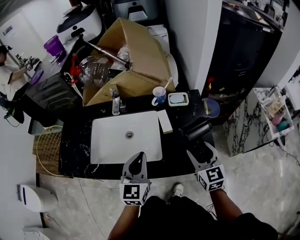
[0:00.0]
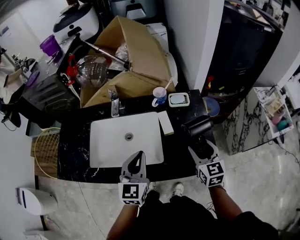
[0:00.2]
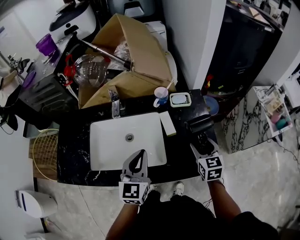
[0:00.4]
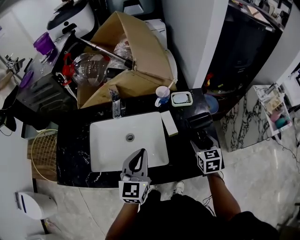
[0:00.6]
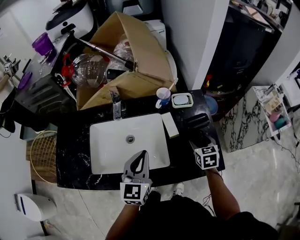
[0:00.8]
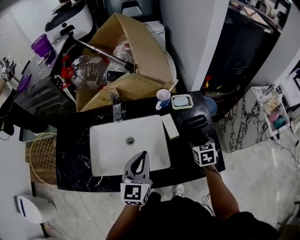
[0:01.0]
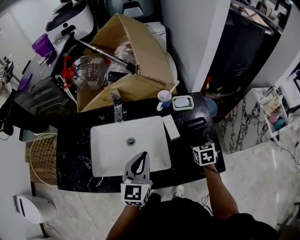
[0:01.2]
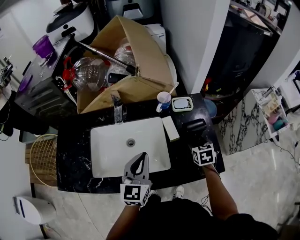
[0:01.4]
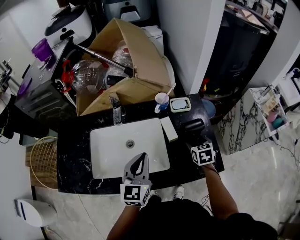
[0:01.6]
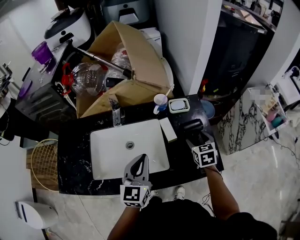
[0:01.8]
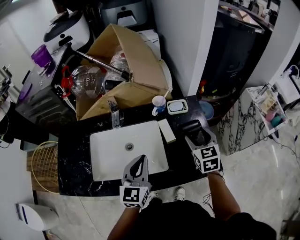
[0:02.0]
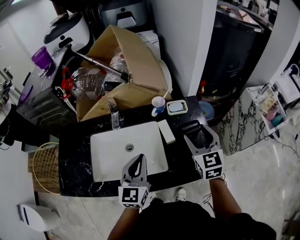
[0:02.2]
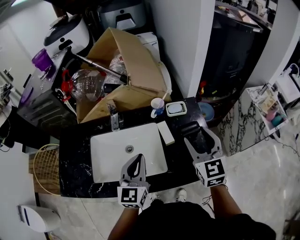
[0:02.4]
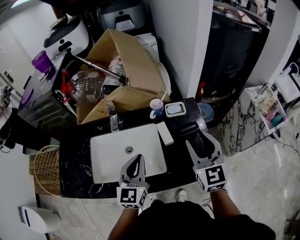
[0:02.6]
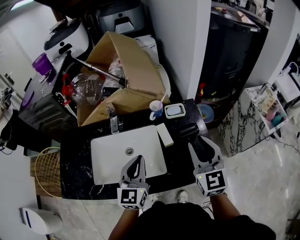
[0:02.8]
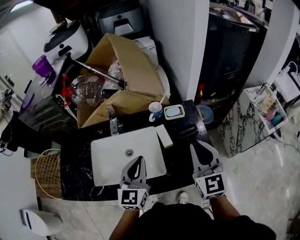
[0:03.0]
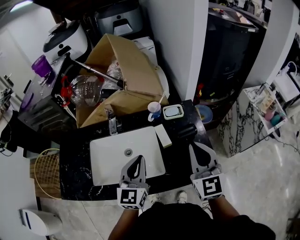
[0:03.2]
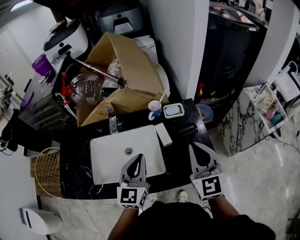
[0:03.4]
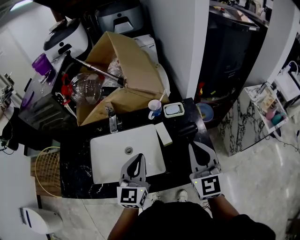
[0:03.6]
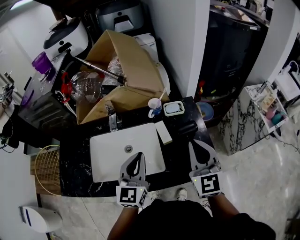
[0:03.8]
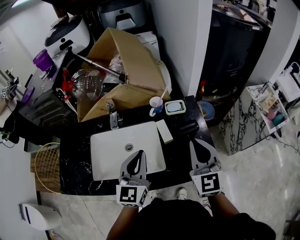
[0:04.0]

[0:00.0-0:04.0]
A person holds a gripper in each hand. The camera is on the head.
0:00.0 to 0:01.4: The left gripper shifts some 5 cm forward; the right gripper moves downward and forward, about 15 cm, and points its fingers some 30 degrees further downward.
0:01.4 to 0:02.6: The right gripper travels upward by approximately 25 cm, and tips its fingers upward by some 40 degrees.
0:02.6 to 0:04.0: The right gripper closes its fingers.

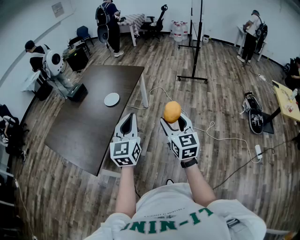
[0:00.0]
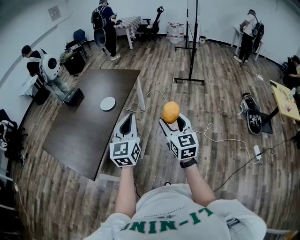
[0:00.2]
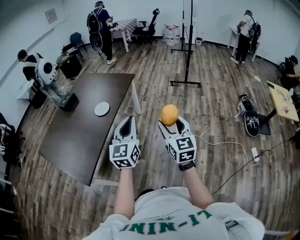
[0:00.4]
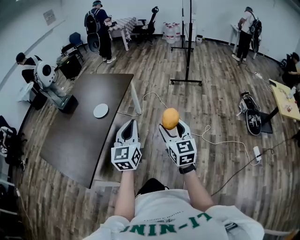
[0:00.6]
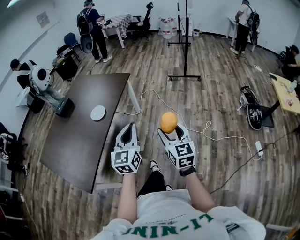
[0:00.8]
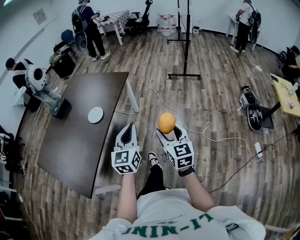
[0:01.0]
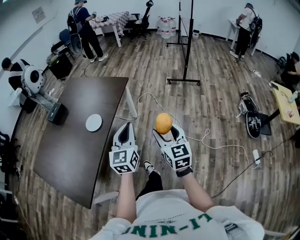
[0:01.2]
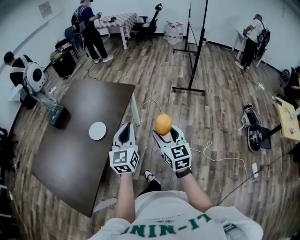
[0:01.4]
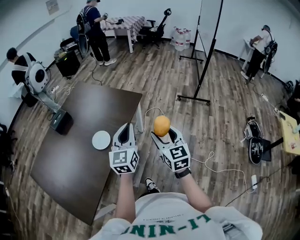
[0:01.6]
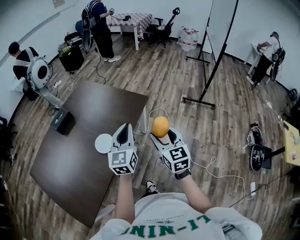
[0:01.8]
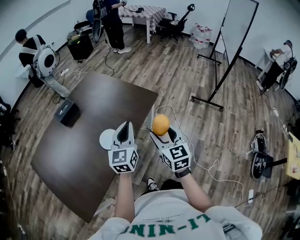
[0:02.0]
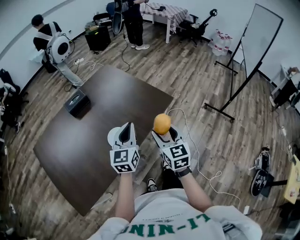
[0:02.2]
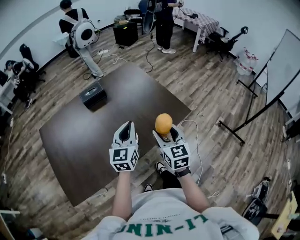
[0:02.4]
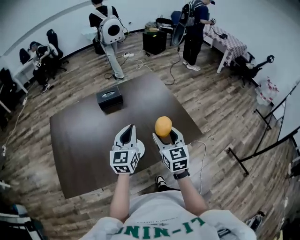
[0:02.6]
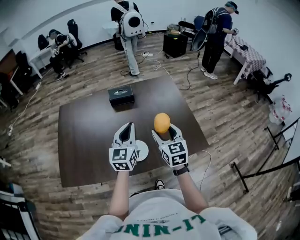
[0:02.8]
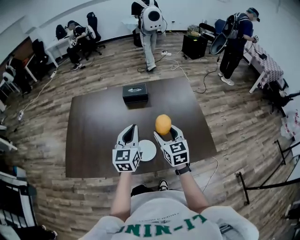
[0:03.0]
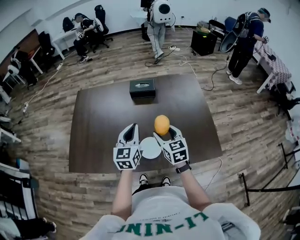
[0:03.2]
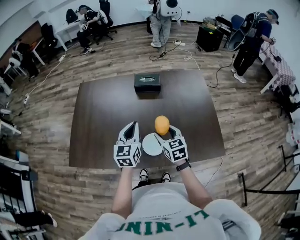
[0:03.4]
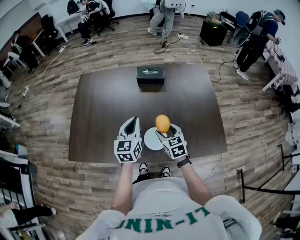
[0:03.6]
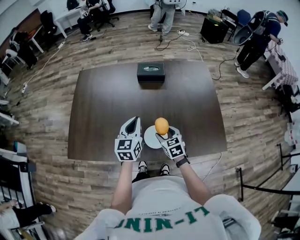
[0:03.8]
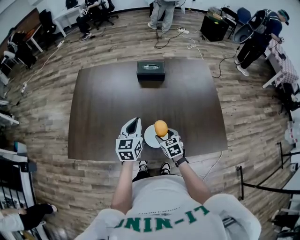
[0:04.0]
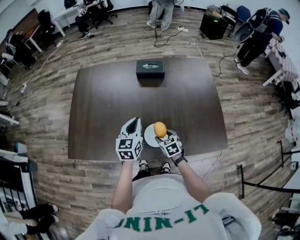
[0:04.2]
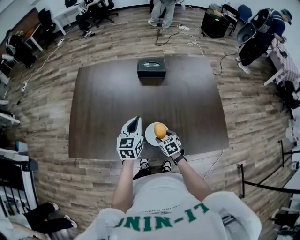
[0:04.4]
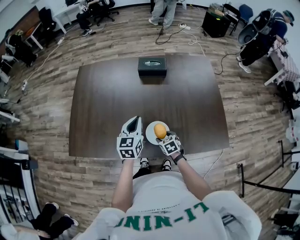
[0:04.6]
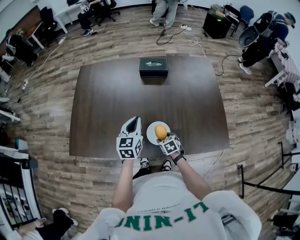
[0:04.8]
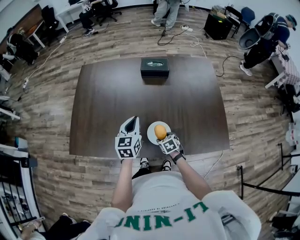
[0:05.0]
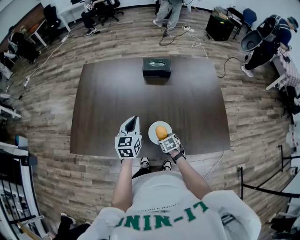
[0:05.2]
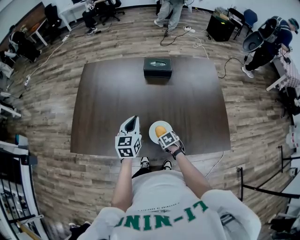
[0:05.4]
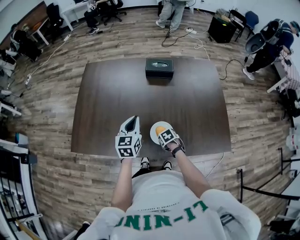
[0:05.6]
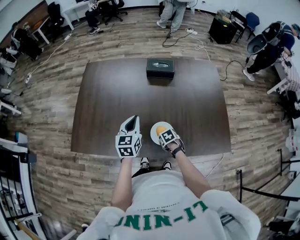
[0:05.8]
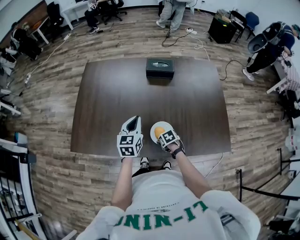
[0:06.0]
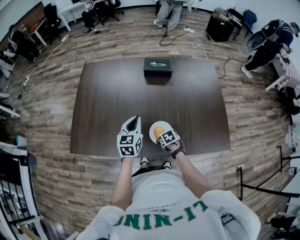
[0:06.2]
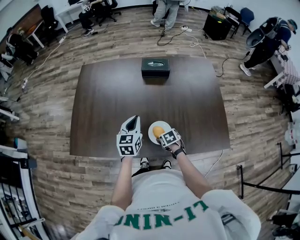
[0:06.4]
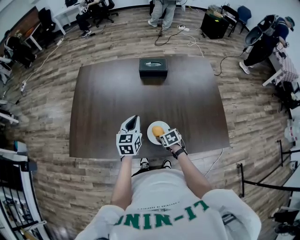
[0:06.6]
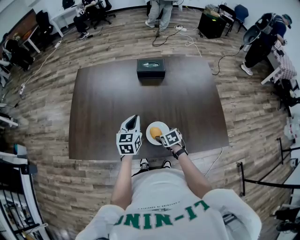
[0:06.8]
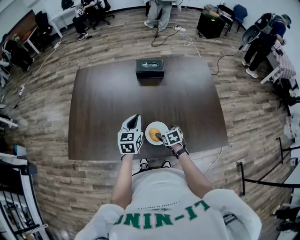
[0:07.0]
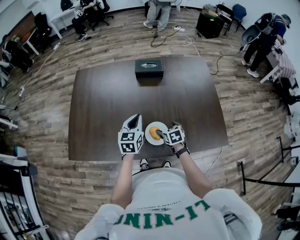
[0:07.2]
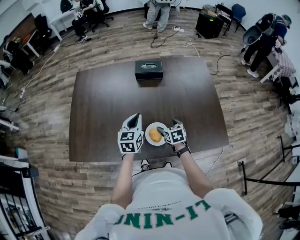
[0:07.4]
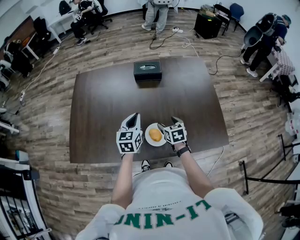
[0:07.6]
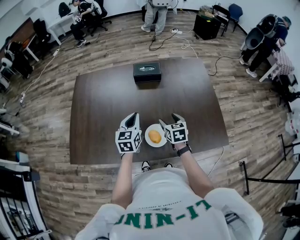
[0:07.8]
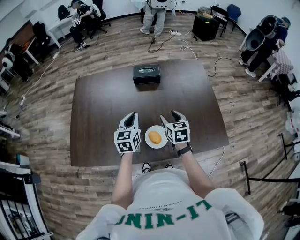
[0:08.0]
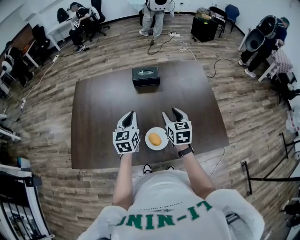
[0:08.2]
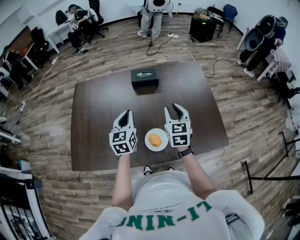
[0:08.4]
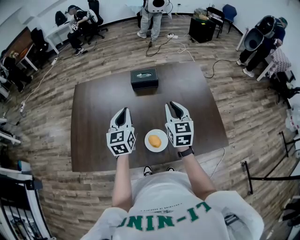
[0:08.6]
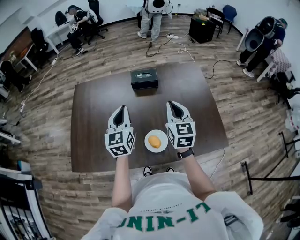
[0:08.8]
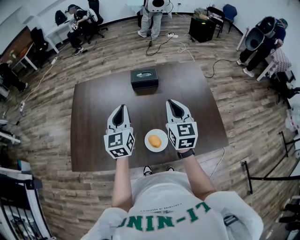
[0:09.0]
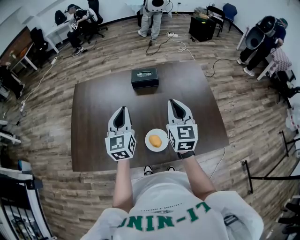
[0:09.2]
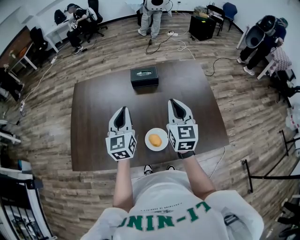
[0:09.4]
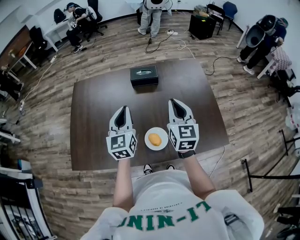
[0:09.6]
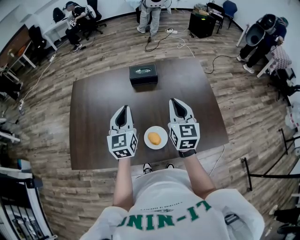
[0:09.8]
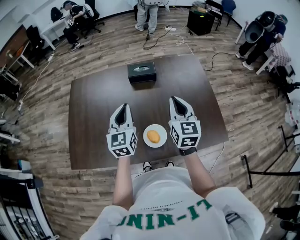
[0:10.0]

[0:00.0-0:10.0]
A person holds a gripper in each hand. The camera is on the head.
0:00.0 to 0:01.4: The two grippers go approximately 35 cm forward.
0:01.4 to 0:02.8: The two grippers travel together, about 50 cm. The left gripper changes its angle by roughly 50 degrees; the right gripper changes its angle by some 60 degrees.
0:02.8 to 0:04.2: The right gripper moves downward, roughly 30 cm, and points its fingers roughly 30 degrees further downward, while the left gripper is displaced downward and to the left by roughly 15 cm.
0:04.2 to 0:05.8: The left gripper moves approximately 5 cm; the right gripper is displaced downward by some 10 cm, and changes its angle by some 30 degrees.
0:05.8 to 0:07.2: The left gripper moves approximately 5 cm, while the right gripper shifts about 10 cm upward, turns by some 30 degrees, and opens its fingers.
0:07.2 to 0:08.6: The left gripper heads upward, covering roughly 10 cm, while the right gripper is displaced upward by some 25 cm, points its fingers approximately 40 degrees further upward, and closes its fingers.
0:08.6 to 0:10.0: The grippers stay close to where they were, moving slightly.

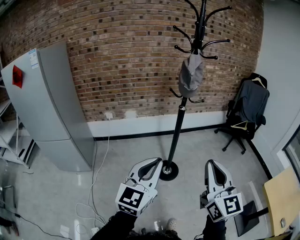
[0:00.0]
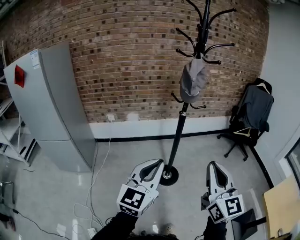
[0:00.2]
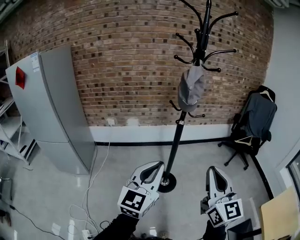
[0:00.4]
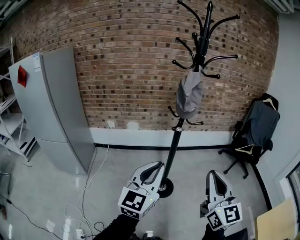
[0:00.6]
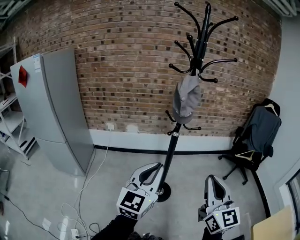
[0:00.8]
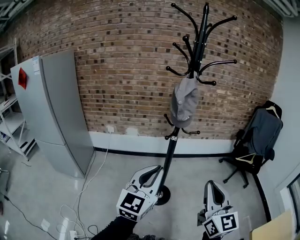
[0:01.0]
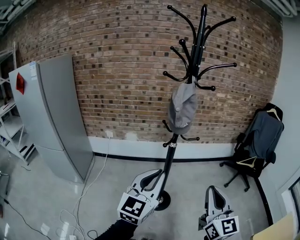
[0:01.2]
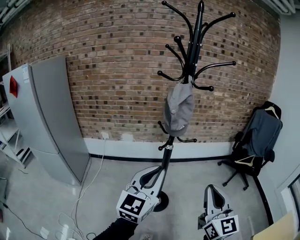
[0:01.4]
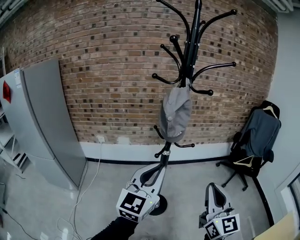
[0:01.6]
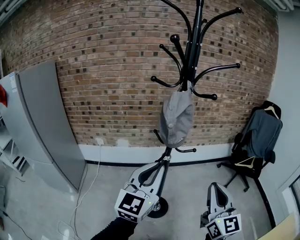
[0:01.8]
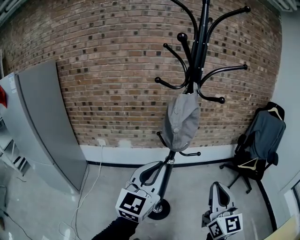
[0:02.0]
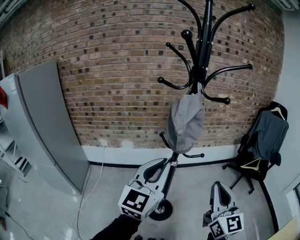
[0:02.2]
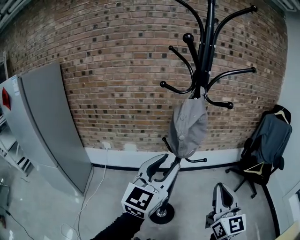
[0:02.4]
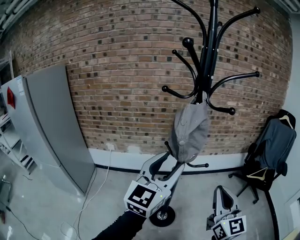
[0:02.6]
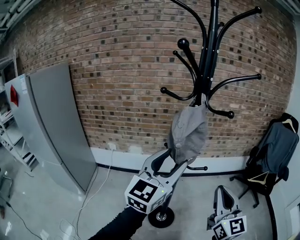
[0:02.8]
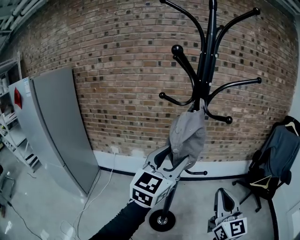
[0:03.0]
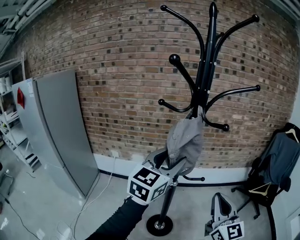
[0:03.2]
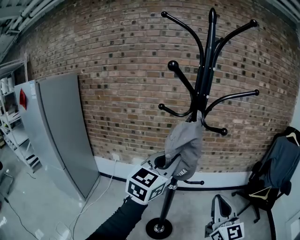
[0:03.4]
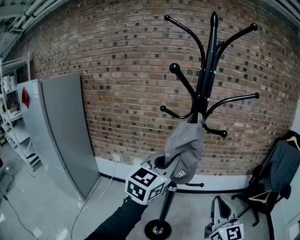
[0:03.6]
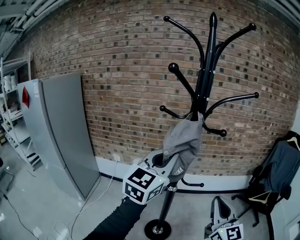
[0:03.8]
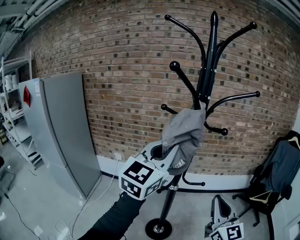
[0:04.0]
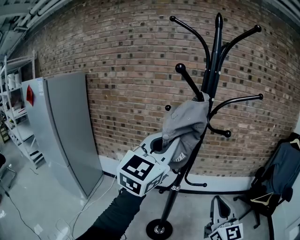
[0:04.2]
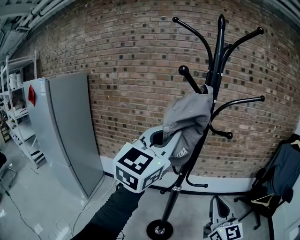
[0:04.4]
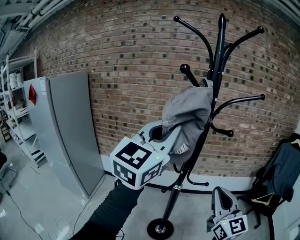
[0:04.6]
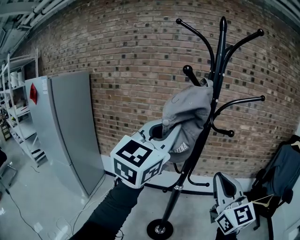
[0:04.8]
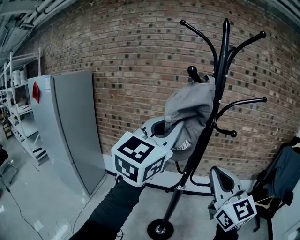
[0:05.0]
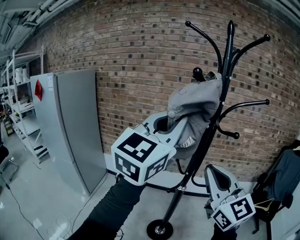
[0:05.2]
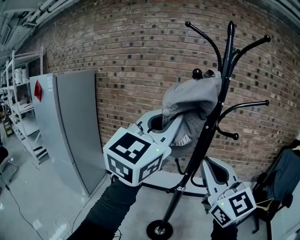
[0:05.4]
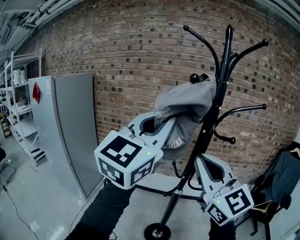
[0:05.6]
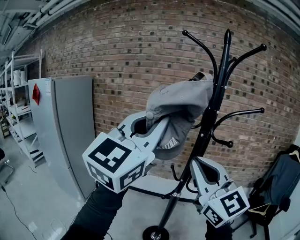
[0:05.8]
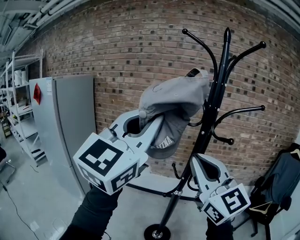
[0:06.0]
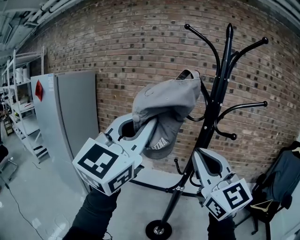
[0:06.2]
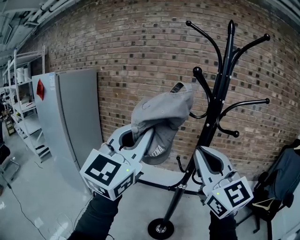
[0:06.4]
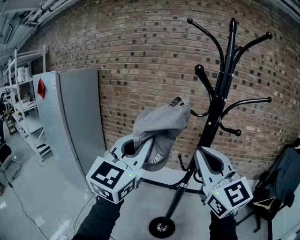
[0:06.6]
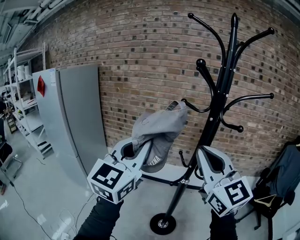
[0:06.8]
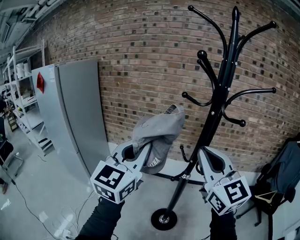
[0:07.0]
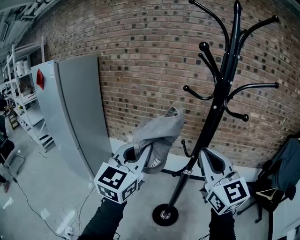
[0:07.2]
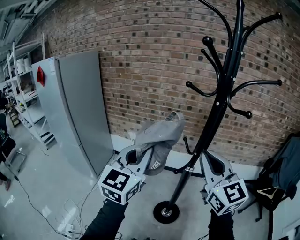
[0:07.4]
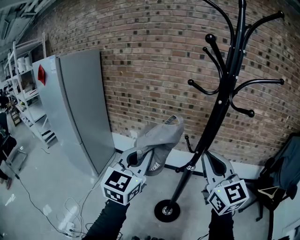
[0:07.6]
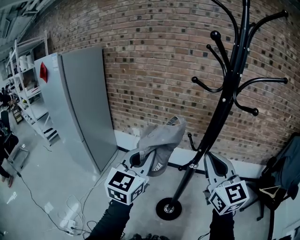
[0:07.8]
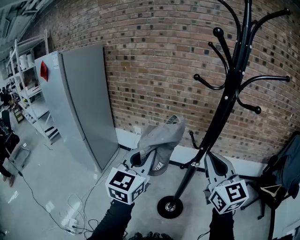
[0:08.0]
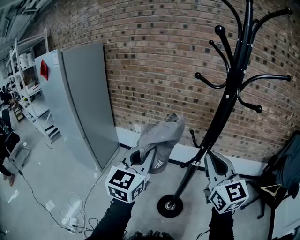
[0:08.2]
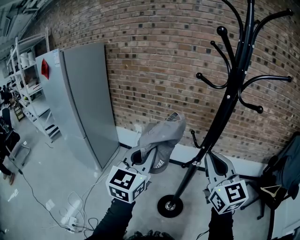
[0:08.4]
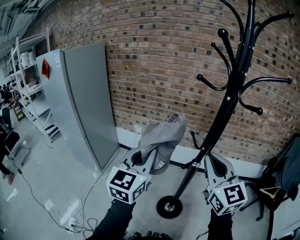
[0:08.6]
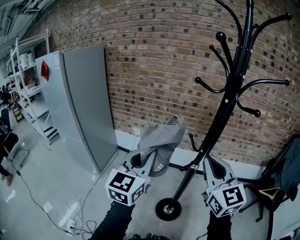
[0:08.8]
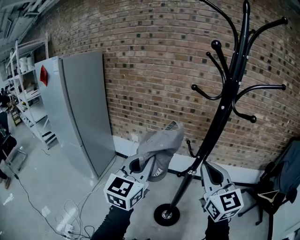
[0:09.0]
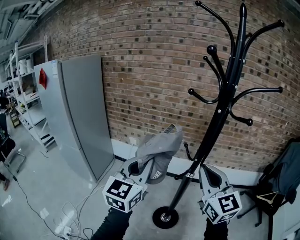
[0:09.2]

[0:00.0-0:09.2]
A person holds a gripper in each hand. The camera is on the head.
0:00.0 to 0:01.6: Both grippers travel together forward and to the right, roughly 30 cm.
0:01.6 to 0:03.0: The right gripper is displaced forward by approximately 15 cm. The left gripper goes about 20 cm forward and upward, and opens its fingers.
0:03.0 to 0:04.6: The left gripper moves upward, some 15 cm, and closes. The right gripper moves about 5 cm.
0:04.6 to 0:06.2: The left gripper goes approximately 10 cm to the left and backward. Meanwhile the right gripper moves upward and to the left, some 20 cm, and rotates approximately 20 degrees.
0:06.2 to 0:07.6: The left gripper heads downward, covering some 20 cm, and swivels roughly 20 degrees. Meanwhile the right gripper goes roughly 10 cm downward.
0:07.6 to 0:09.2: The grippers move only a little.
